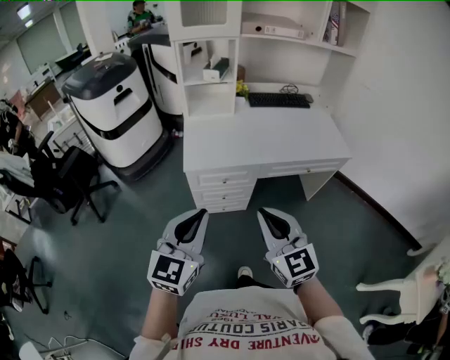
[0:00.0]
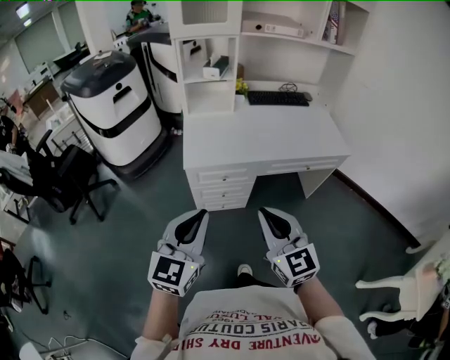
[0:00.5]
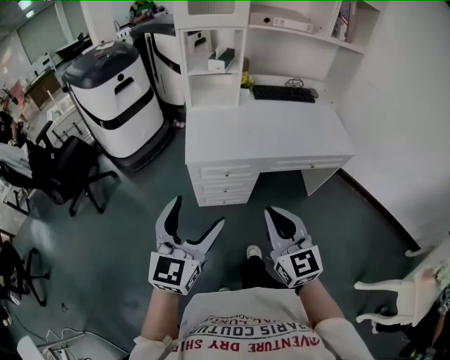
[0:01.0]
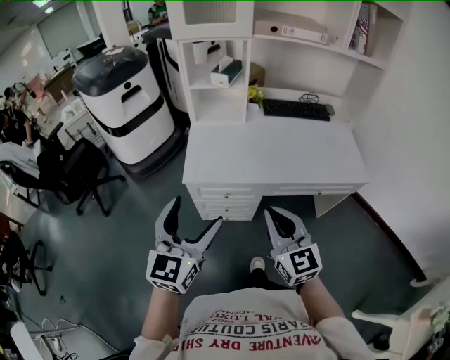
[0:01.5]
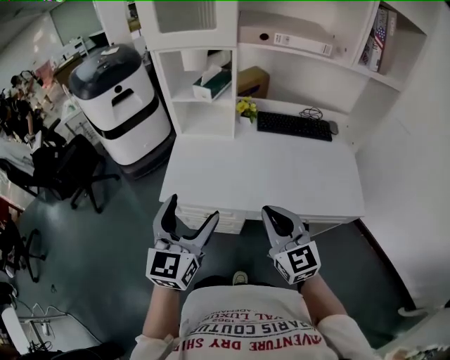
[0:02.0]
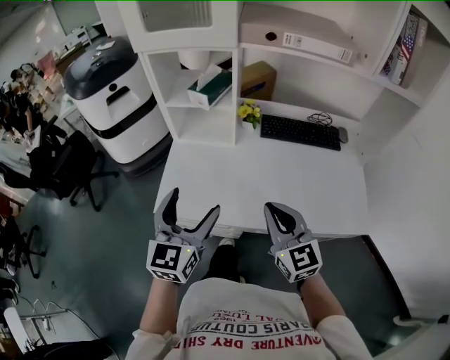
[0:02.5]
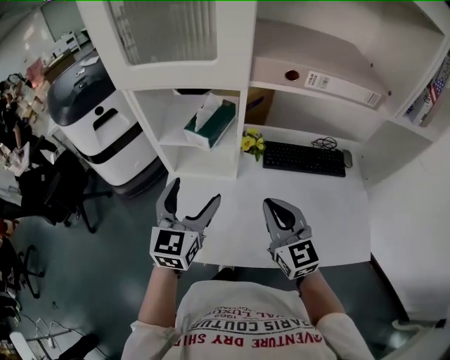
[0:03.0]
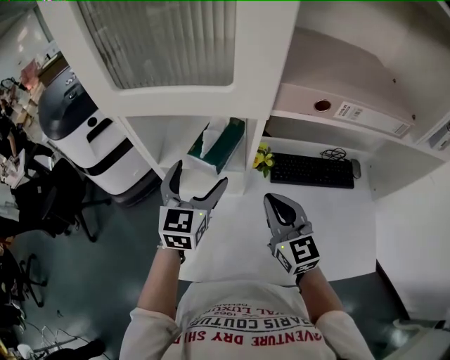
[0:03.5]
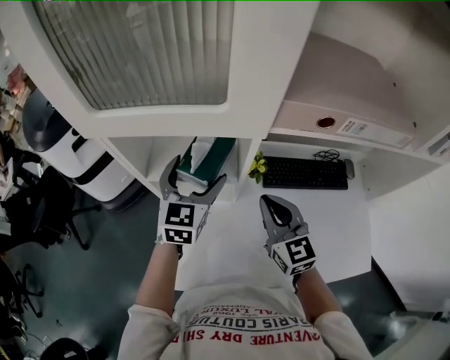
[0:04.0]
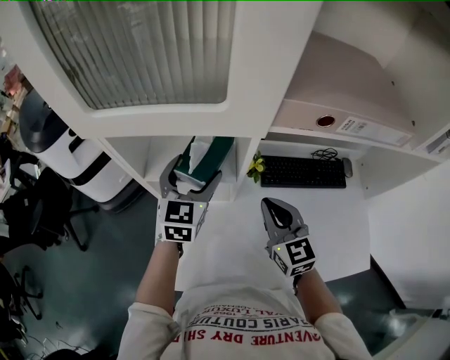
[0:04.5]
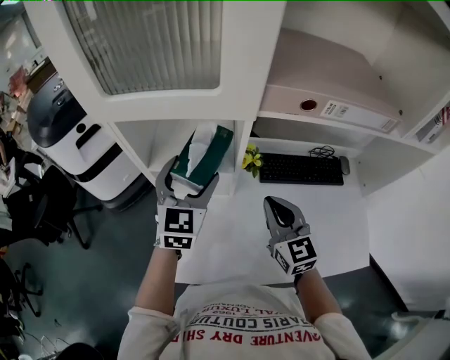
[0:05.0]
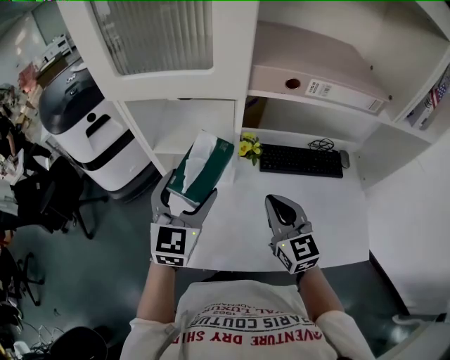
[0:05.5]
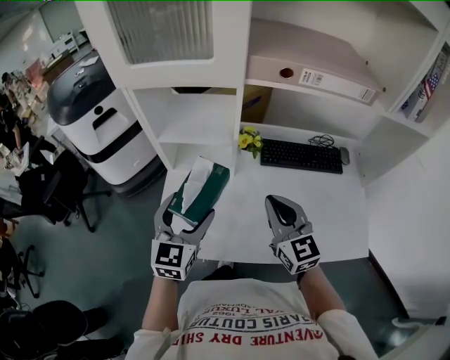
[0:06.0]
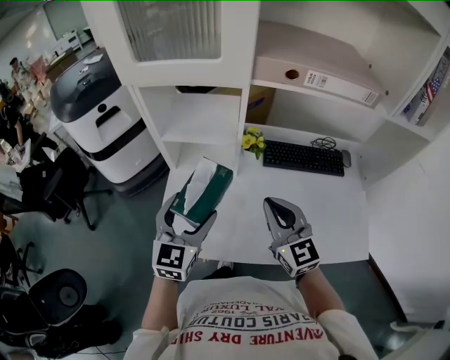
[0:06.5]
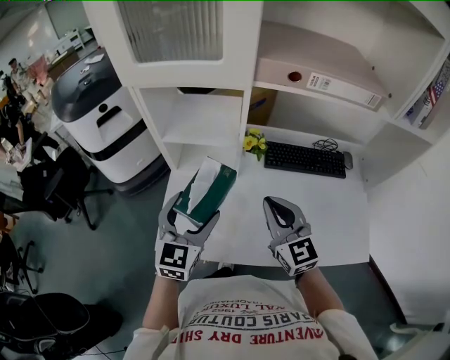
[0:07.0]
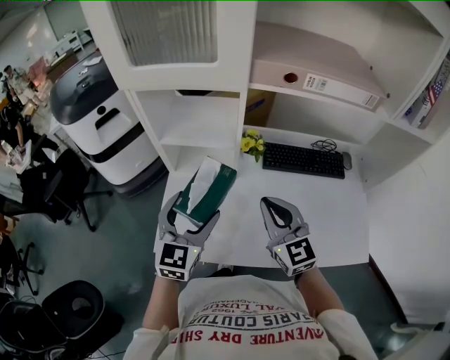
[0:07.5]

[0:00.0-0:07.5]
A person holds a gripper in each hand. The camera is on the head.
0:00.0 to 0:02.0: The two grippers go roughly 30 cm forward and to the right. The left gripper rotates some 20 degrees, and opens up.
0:02.0 to 0:04.0: Both grippers are carried forward, some 50 cm.
0:04.0 to 0:05.5: The left gripper moves backward, about 15 cm, while the right gripper goes about 10 cm backward.
0:05.5 to 0:07.5: The left gripper travels backward by roughly 5 cm.

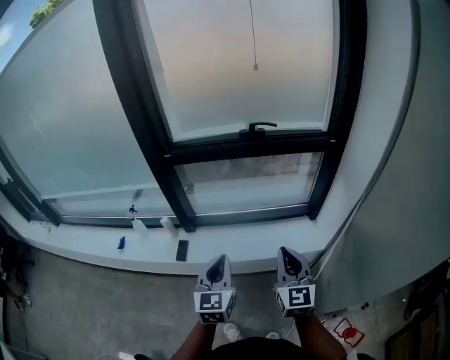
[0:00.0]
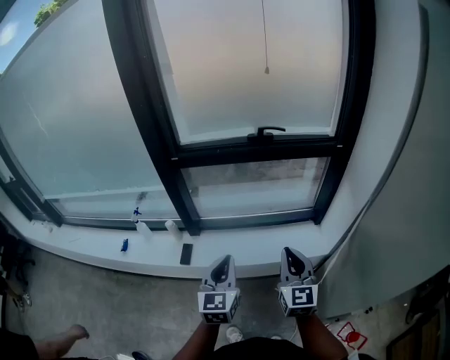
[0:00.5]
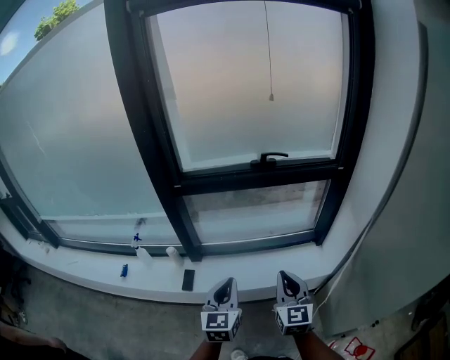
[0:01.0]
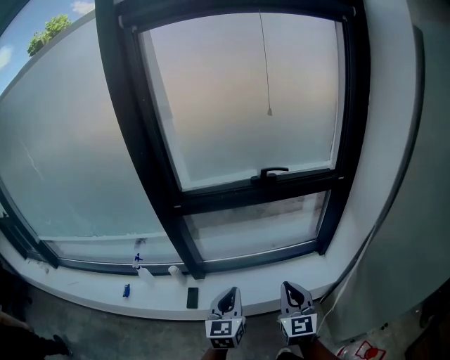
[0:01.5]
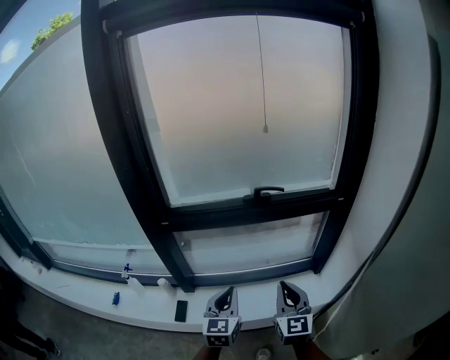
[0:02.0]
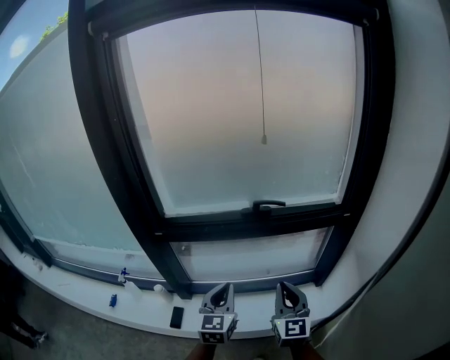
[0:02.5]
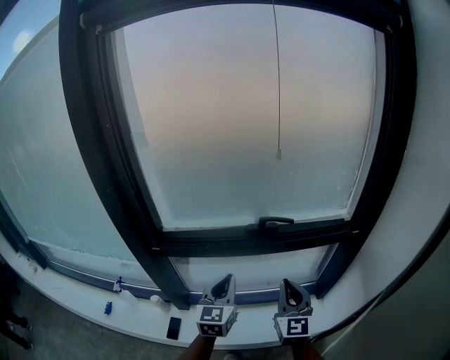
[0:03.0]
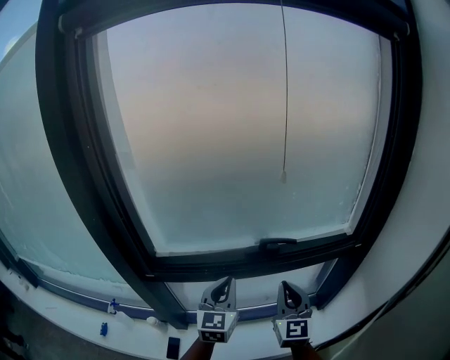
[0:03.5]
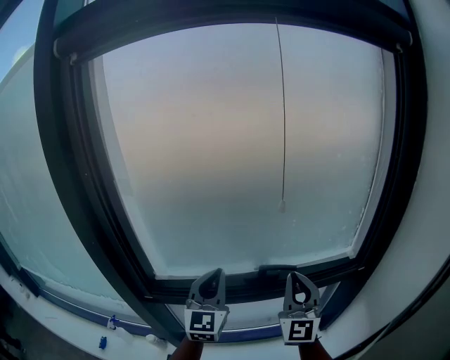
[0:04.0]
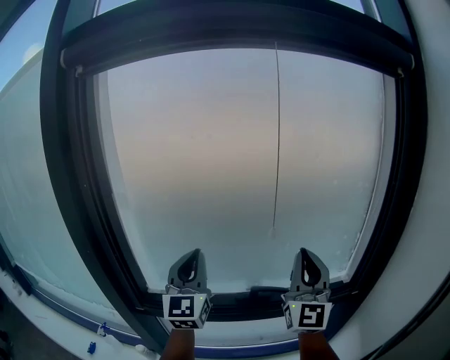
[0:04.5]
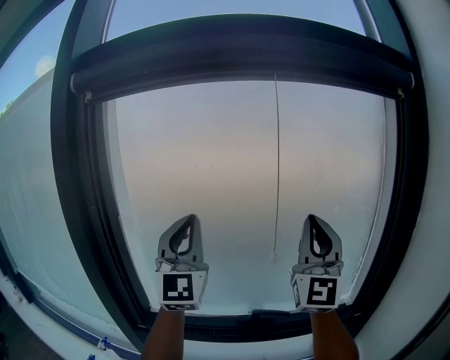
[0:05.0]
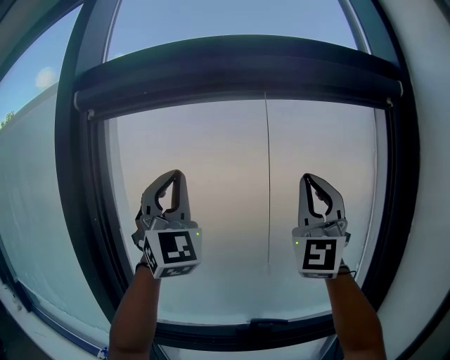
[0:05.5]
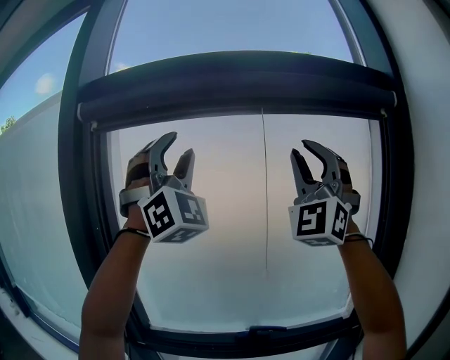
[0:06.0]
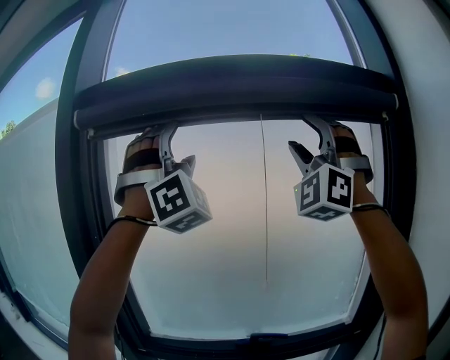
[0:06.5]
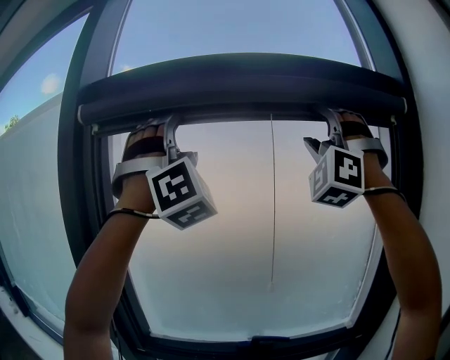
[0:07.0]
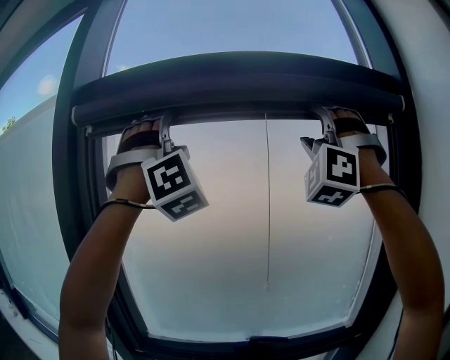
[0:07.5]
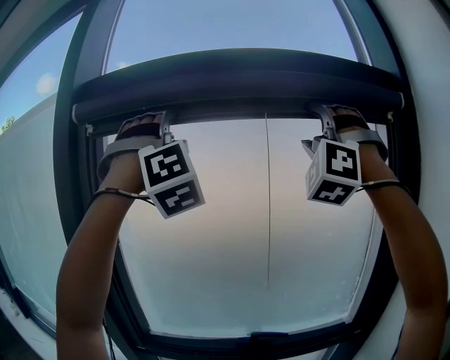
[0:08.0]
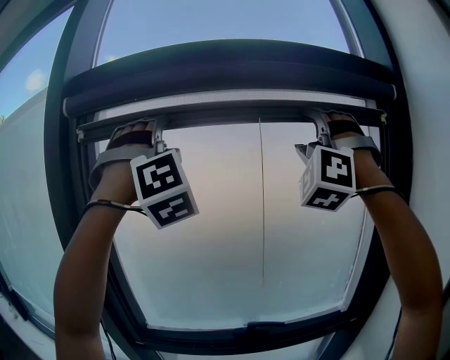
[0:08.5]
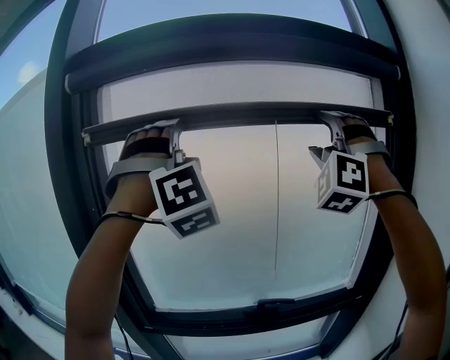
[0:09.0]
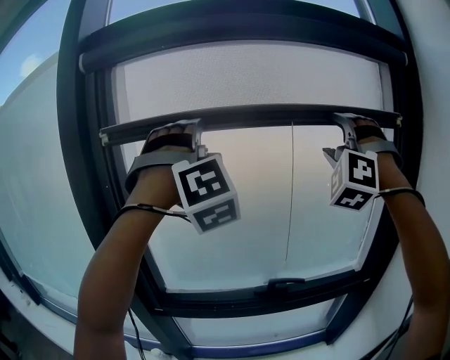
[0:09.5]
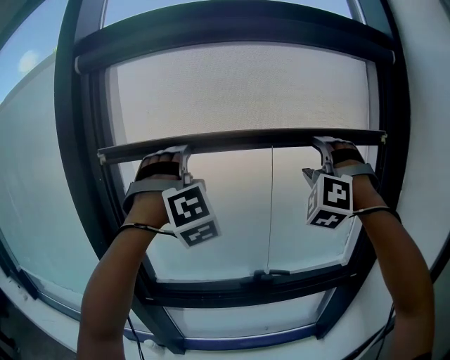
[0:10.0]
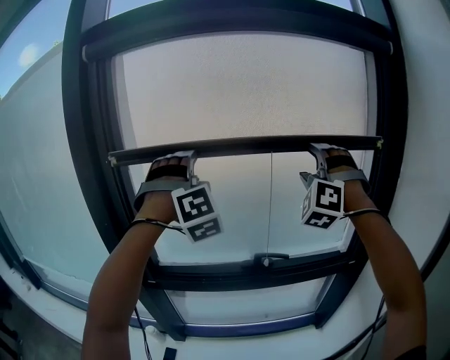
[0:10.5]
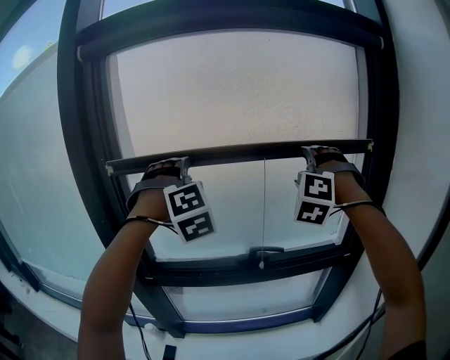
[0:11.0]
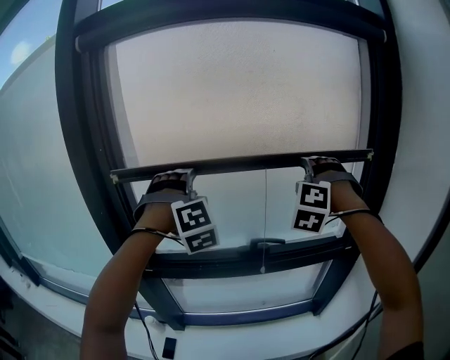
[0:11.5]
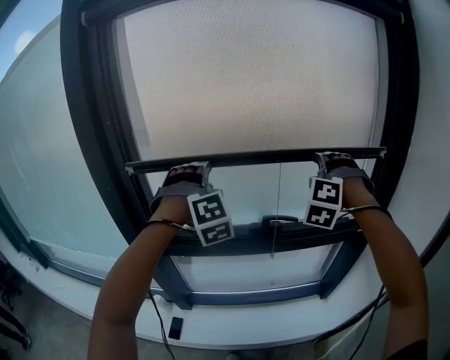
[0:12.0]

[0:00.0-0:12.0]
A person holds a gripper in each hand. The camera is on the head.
0:00.0 to 0:02.0: Both grippers move forward, some 15 cm.
0:02.0 to 0:04.0: The two grippers go roughly 35 cm forward and upward. The right gripper turns by approximately 30 degrees. The left gripper changes its angle by some 30 degrees.
0:04.0 to 0:06.0: The grippers both shift upward by roughly 50 cm. The left gripper rolls clockwise, seen from behind, by roughly 60 degrees, and opens. Meanwhile the right gripper twists some 40 degrees counterclockwise, seen from behind.
0:06.0 to 0:08.0: The left gripper rotates roughly 30 degrees, and opens its fingers, while the right gripper heads upward, covering about 5 cm, turns by about 40 degrees, and opens its fingers.
0:08.0 to 0:10.0: The two grippers go approximately 20 cm downward.
0:10.0 to 0:12.0: Both grippers travel together downward, about 20 cm. The right gripper rotates about 30 degrees.

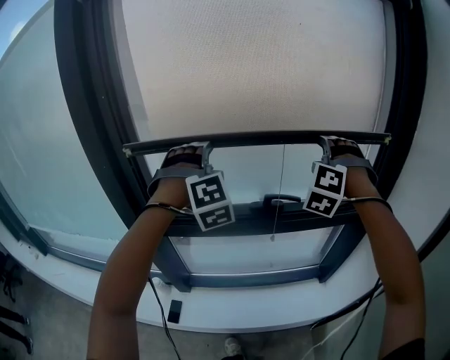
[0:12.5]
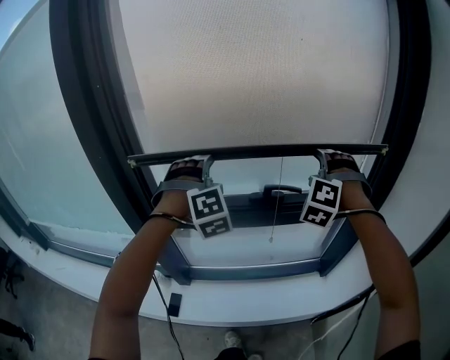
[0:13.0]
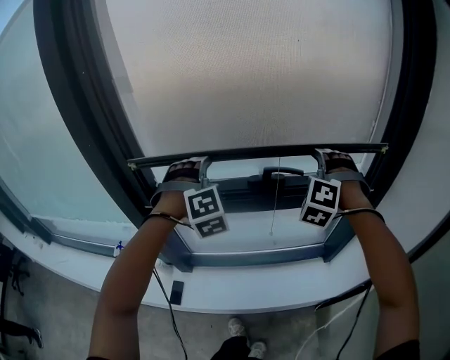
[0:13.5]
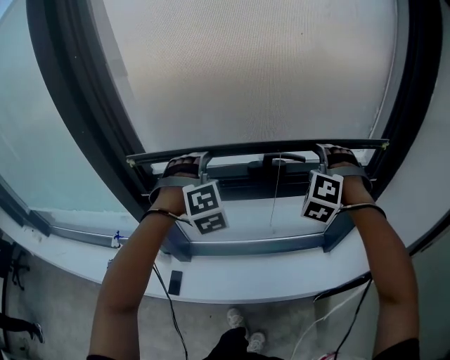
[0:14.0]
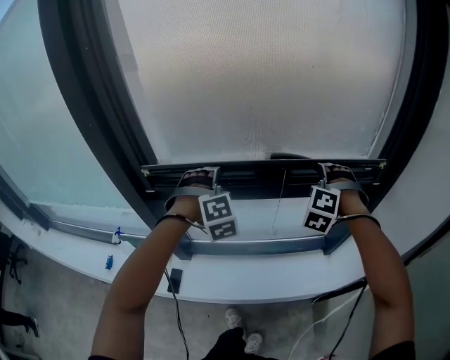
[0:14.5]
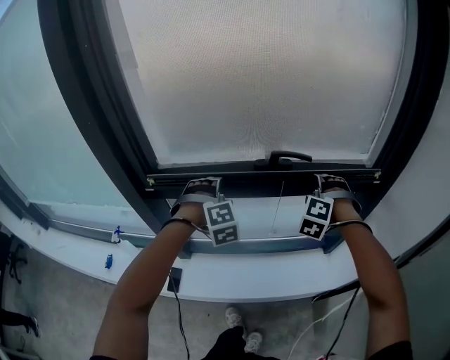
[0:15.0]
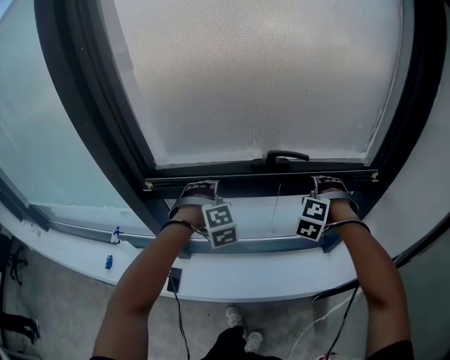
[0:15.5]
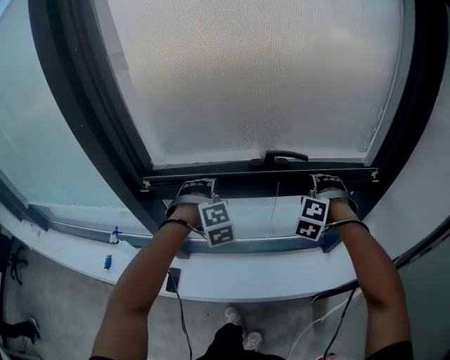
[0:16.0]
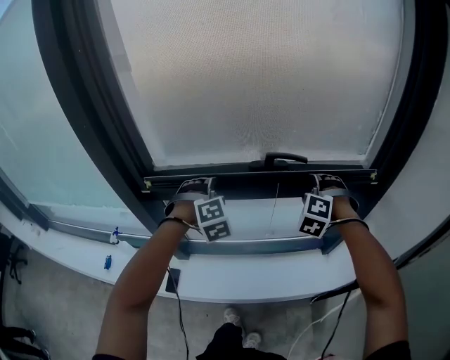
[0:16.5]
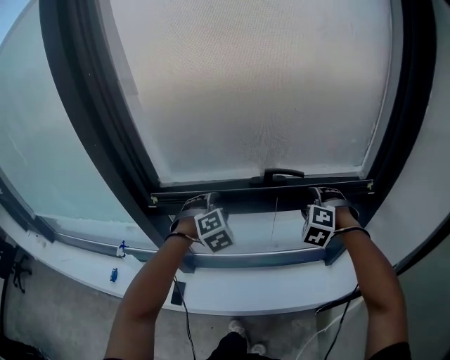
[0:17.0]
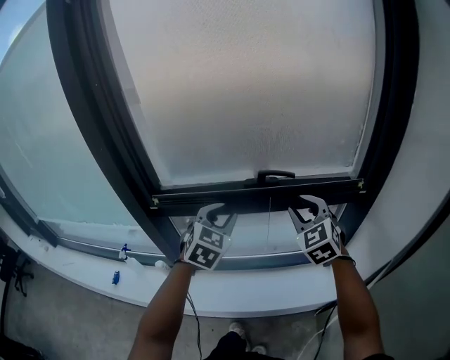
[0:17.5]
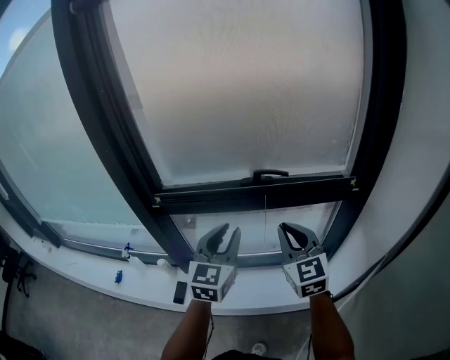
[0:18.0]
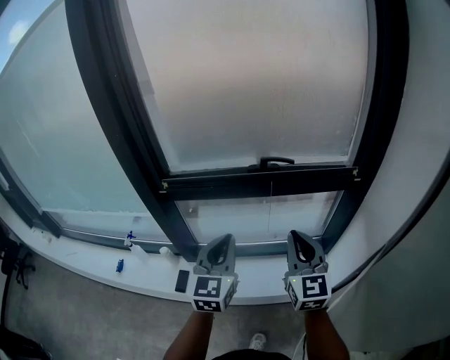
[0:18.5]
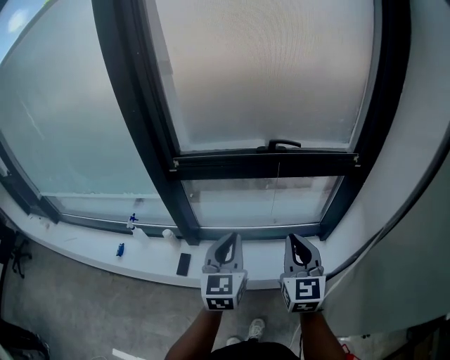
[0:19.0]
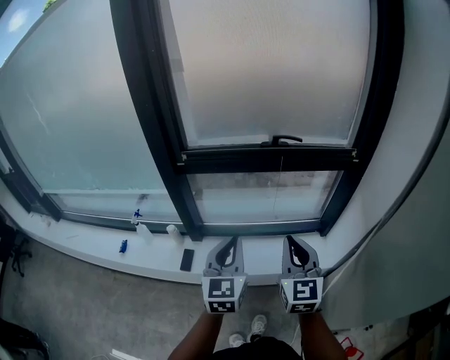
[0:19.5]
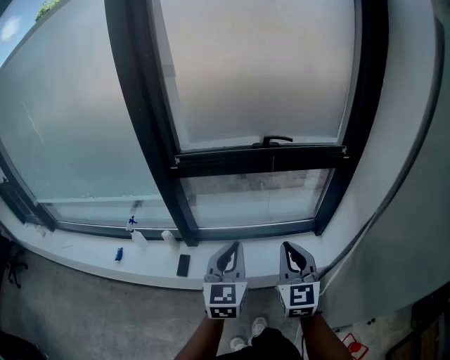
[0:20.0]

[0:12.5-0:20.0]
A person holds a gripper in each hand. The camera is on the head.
0:12.5 to 0:14.5: Both grippers travel together downward, some 25 cm.
0:14.5 to 0:16.5: The left gripper closes its fingers.
0:16.5 to 0:18.0: The right gripper shifts some 20 cm backward and upward, rotates around the line of its fingers by approximately 60 degrees, clockwise from behind, and closes up, while the left gripper shifts roughly 20 cm backward, upward and to the right, and rotates around the line of its fingers by roughly 60 degrees, counterclockwise from behind.
0:18.0 to 0:20.0: Both grippers travel together backward, some 20 cm.
